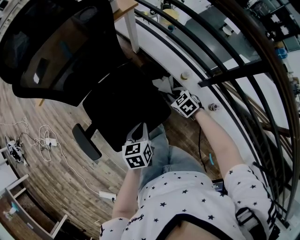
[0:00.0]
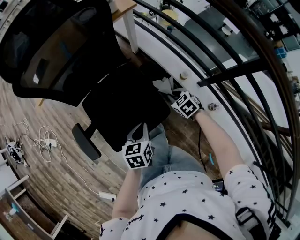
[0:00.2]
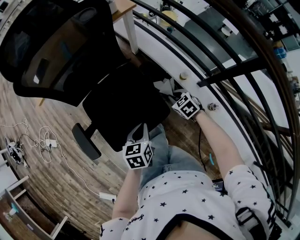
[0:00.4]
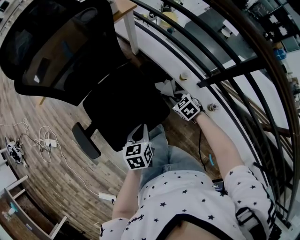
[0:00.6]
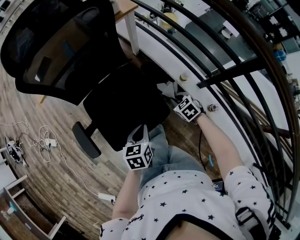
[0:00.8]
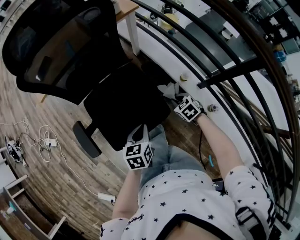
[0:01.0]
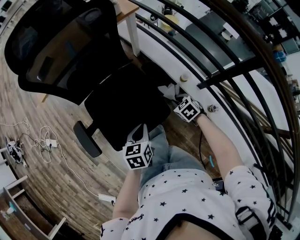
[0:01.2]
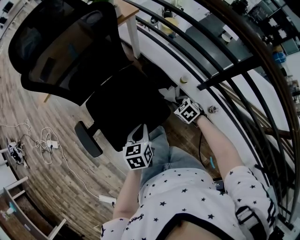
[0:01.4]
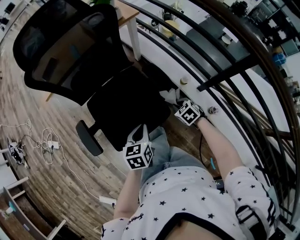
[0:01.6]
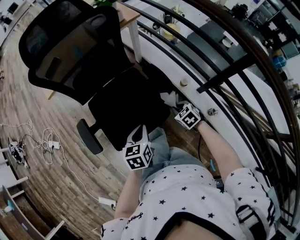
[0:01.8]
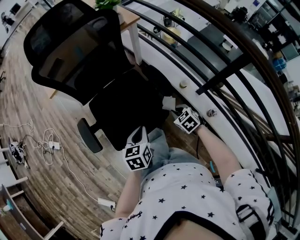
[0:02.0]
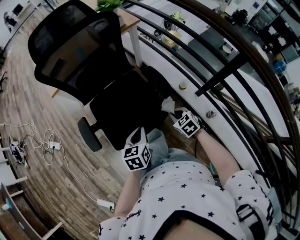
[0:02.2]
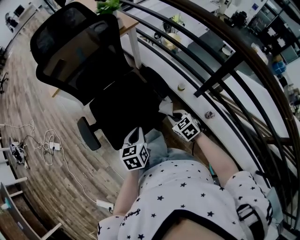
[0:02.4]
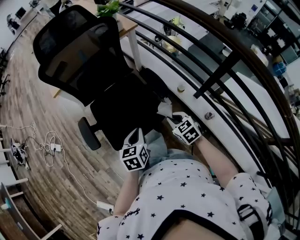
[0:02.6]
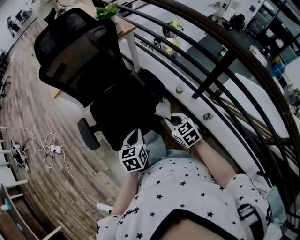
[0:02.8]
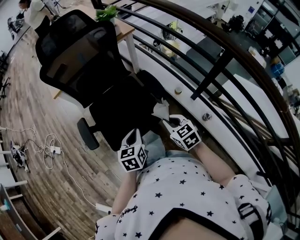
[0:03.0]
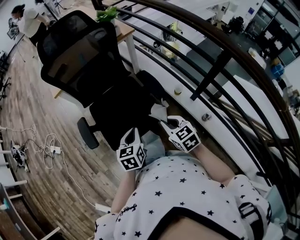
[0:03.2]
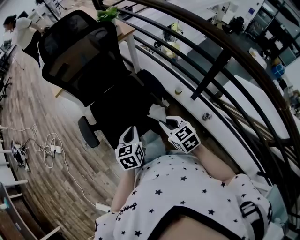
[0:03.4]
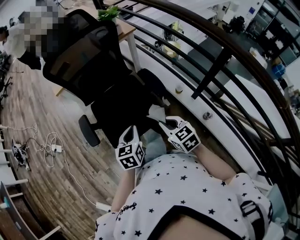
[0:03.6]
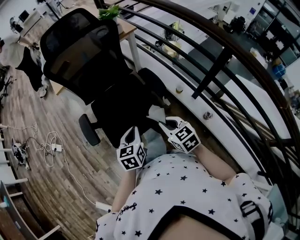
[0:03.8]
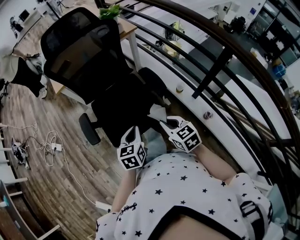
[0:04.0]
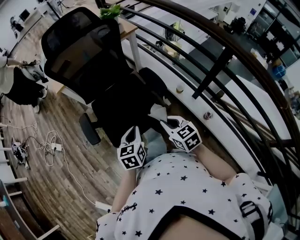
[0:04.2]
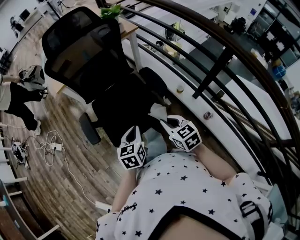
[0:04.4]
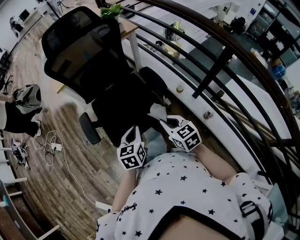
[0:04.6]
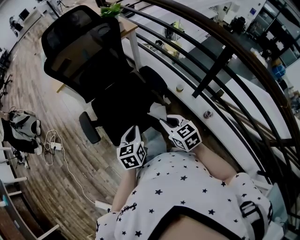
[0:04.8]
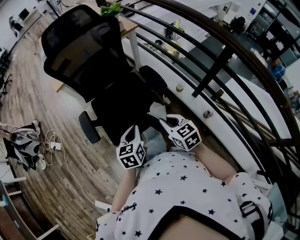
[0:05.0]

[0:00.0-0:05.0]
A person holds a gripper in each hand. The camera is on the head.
0:00.0 to 0:01.6: The right gripper is displaced backward by about 10 cm.
0:01.6 to 0:03.4: The right gripper shifts some 25 cm upward and backward, and changes its angle by roughly 30 degrees. The left gripper shifts some 10 cm backward and upward.
0:03.4 to 0:05.0: The grippers make only small movements.

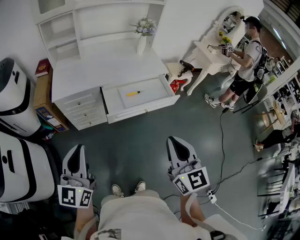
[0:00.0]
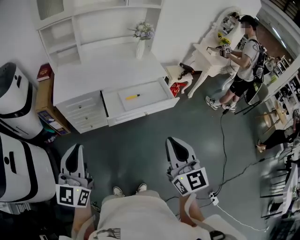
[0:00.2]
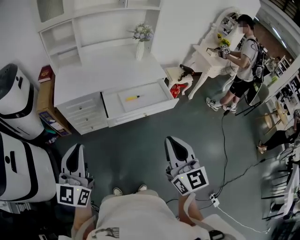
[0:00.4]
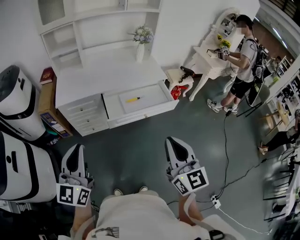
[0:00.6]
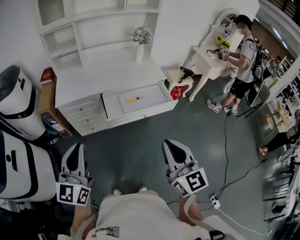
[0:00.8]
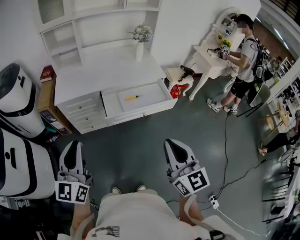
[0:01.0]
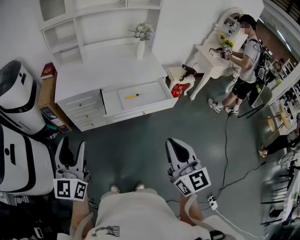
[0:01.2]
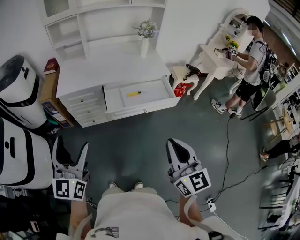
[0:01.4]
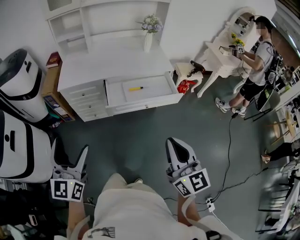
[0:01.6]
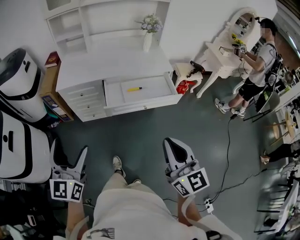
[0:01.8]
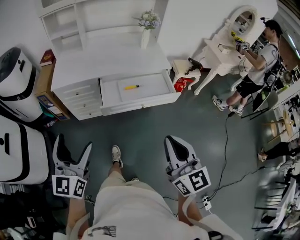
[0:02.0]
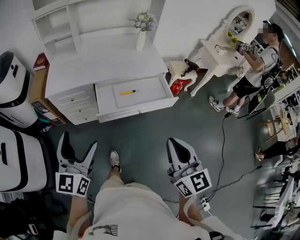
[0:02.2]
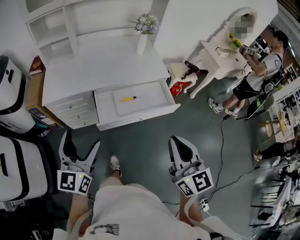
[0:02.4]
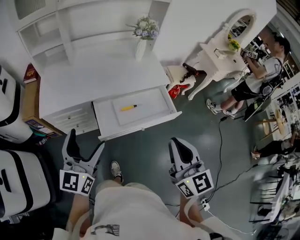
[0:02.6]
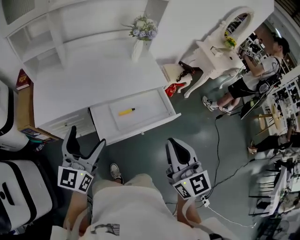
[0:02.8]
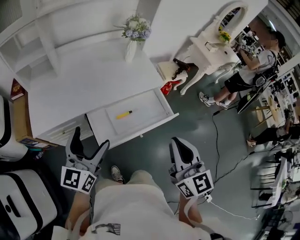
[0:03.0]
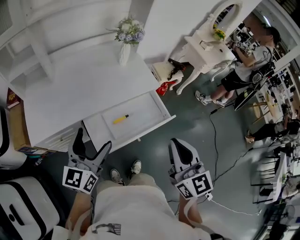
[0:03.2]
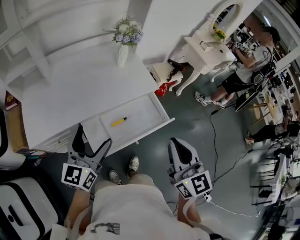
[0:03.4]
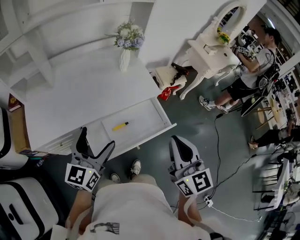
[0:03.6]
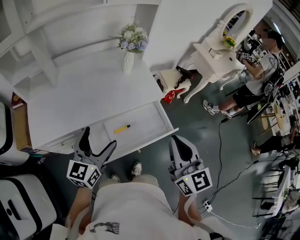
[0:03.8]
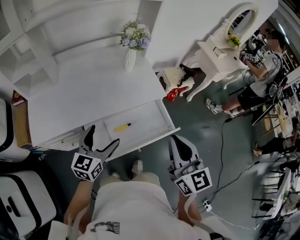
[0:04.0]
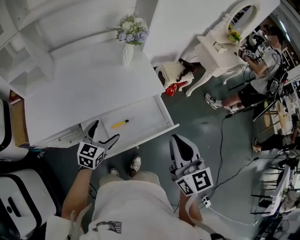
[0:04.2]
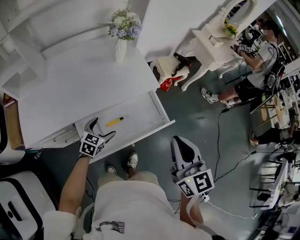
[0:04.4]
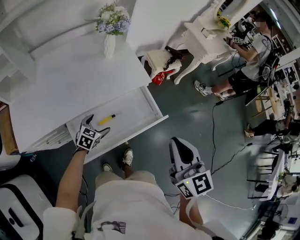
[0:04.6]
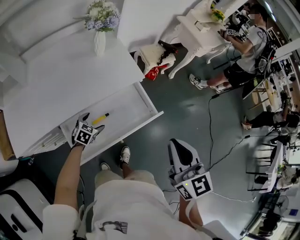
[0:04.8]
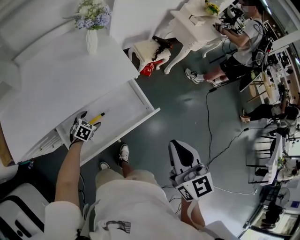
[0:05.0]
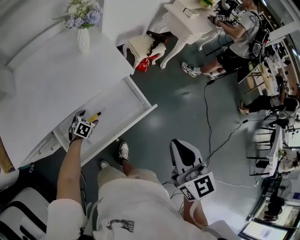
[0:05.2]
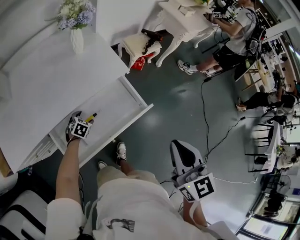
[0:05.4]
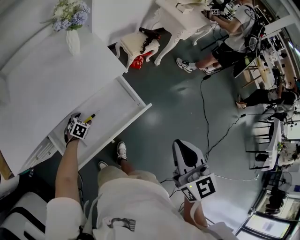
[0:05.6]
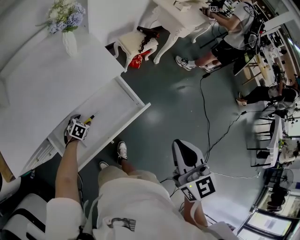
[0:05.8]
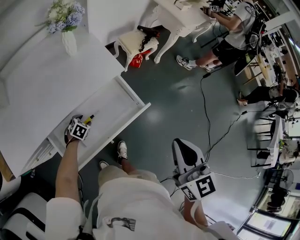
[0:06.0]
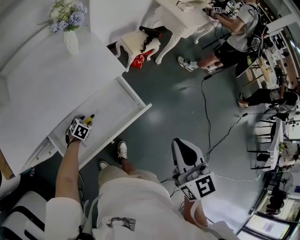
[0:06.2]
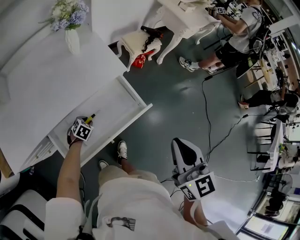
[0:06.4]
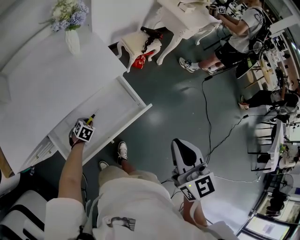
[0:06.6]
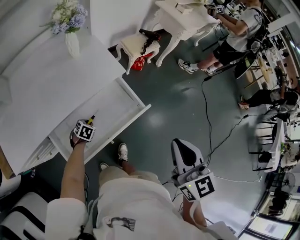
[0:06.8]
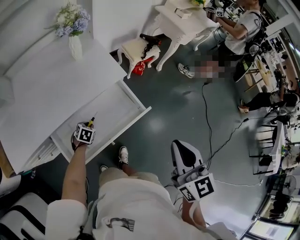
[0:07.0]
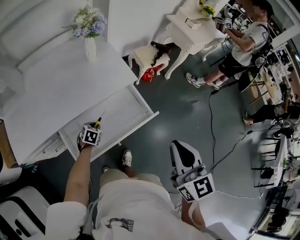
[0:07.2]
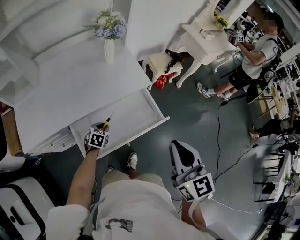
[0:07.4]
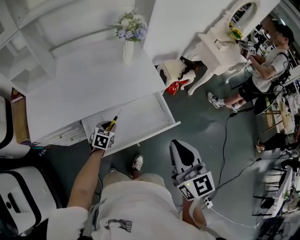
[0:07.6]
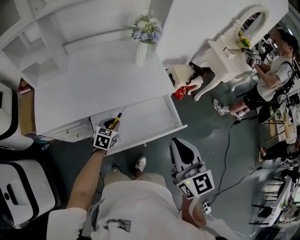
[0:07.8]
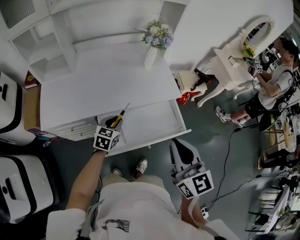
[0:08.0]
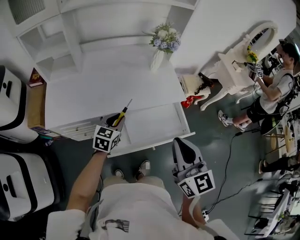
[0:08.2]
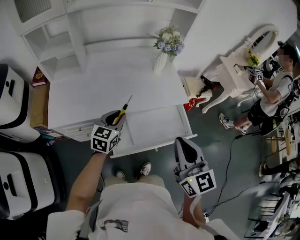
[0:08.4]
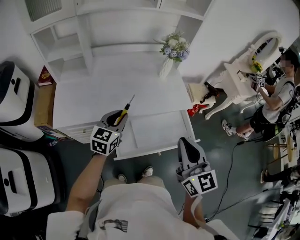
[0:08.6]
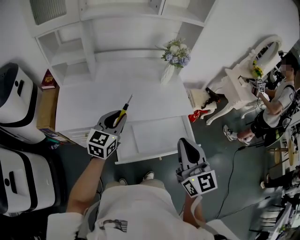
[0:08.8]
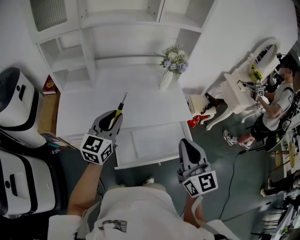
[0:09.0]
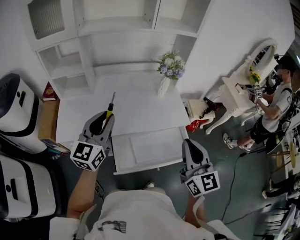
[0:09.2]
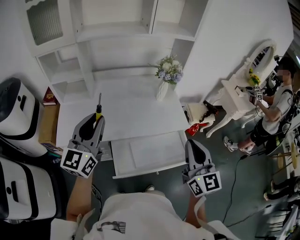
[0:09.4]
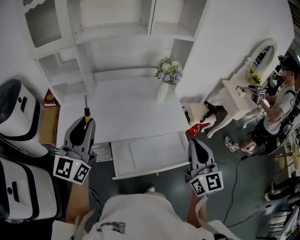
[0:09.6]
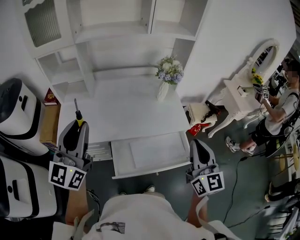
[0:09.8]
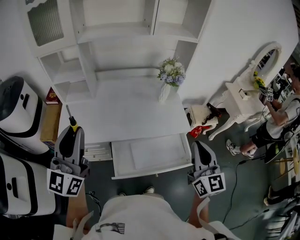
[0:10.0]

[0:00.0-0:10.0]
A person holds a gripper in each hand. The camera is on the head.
0:00.0 to 0:01.4: Both grippers travel together to the right, roughly 5 cm. The left gripper opens.
0:01.4 to 0:02.8: Both grippers travel together forward, roughly 30 cm. The left gripper rotates about 20 degrees.
0:02.8 to 0:04.2: The left gripper is displaced forward, downward and to the right by roughly 30 cm, and changes its angle by approximately 30 degrees; the right gripper travels forward and to the right by approximately 15 cm.
0:04.2 to 0:05.8: The right gripper shifts roughly 15 cm to the right, and turns by approximately 20 degrees. Meanwhile the left gripper shifts approximately 30 cm downward, tips its fingers downward by about 40 degrees, and closes its fingers.
0:05.8 to 0:07.2: The left gripper ends up roughly 5 cm from where it was, and closes.
0:07.2 to 0:08.6: The right gripper is displaced to the left by about 20 cm, and swivels some 20 degrees. Meanwhile the left gripper is displaced upward and to the left by roughly 35 cm, and points its fingers about 40 degrees further upward.
0:08.6 to 0:10.0: The right gripper goes some 10 cm to the right and forward. Meanwhile the left gripper is displaced upward by about 25 cm, and points its fingers some 30 degrees further upward.

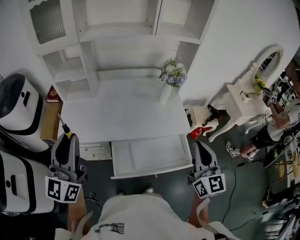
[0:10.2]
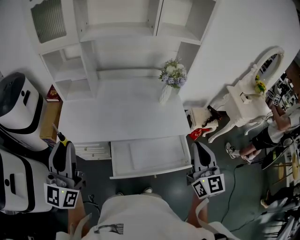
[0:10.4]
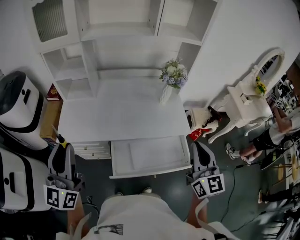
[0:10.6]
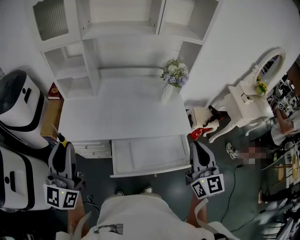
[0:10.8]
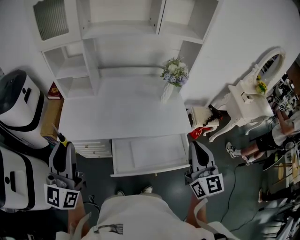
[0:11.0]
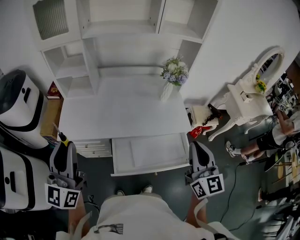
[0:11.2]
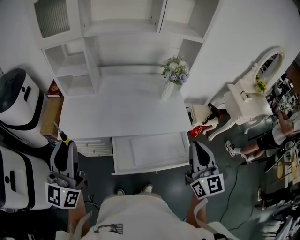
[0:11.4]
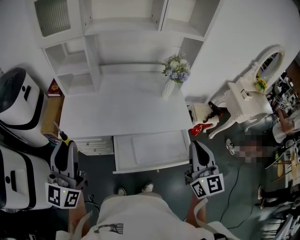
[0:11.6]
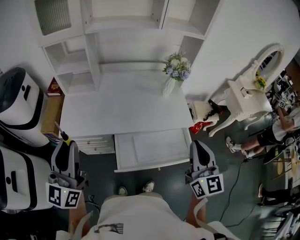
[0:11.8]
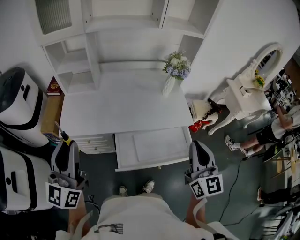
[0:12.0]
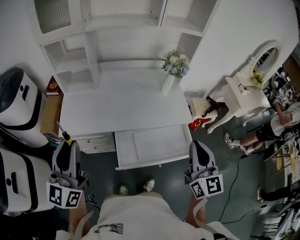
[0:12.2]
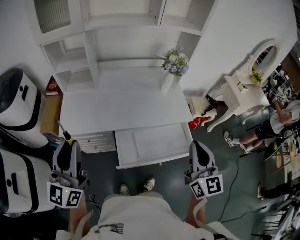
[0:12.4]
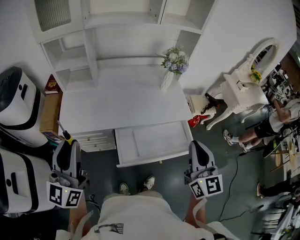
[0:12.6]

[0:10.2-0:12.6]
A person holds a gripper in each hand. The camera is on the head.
0:10.2 to 0:11.4: The left gripper shifts some 5 cm backward; the right gripper moves approximately 5 cm.
0:11.4 to 0:12.6: The right gripper heads backward, covering some 5 cm.

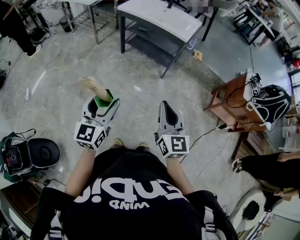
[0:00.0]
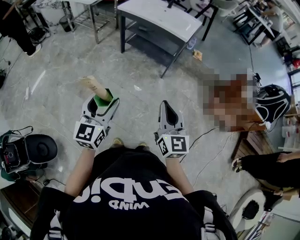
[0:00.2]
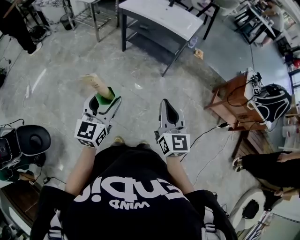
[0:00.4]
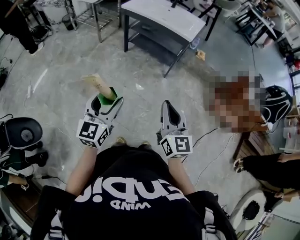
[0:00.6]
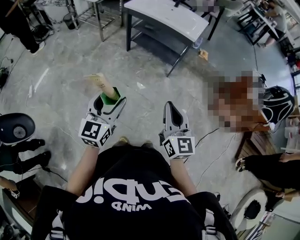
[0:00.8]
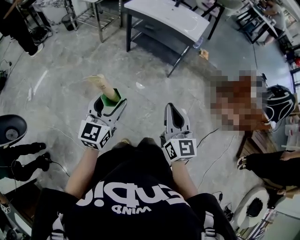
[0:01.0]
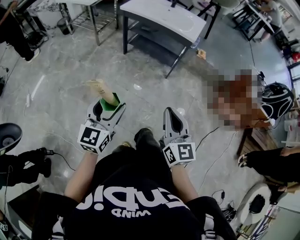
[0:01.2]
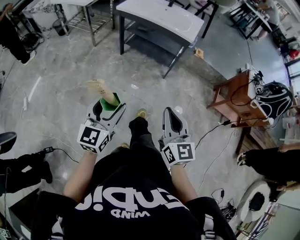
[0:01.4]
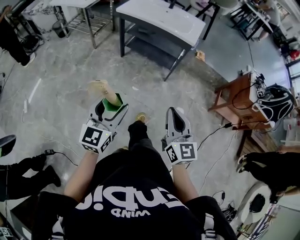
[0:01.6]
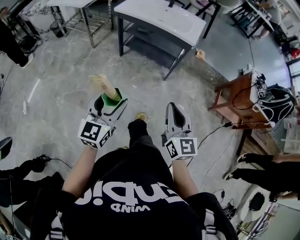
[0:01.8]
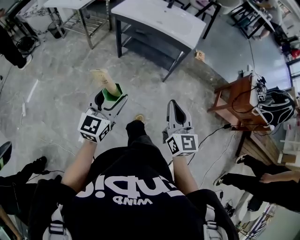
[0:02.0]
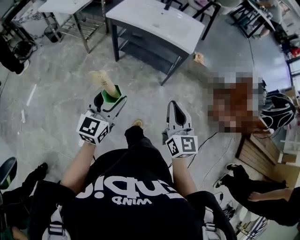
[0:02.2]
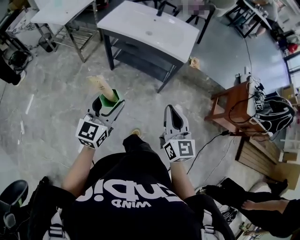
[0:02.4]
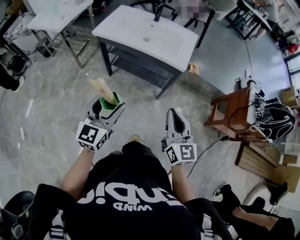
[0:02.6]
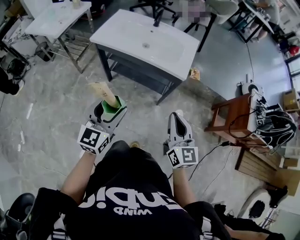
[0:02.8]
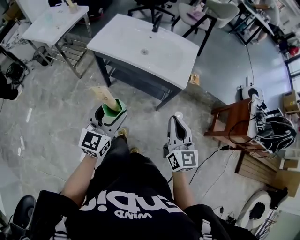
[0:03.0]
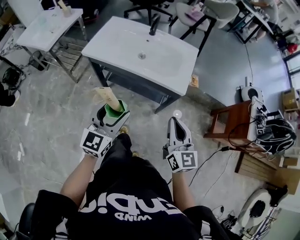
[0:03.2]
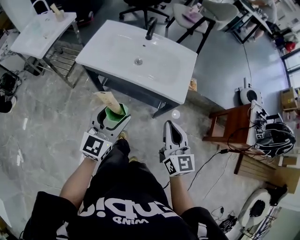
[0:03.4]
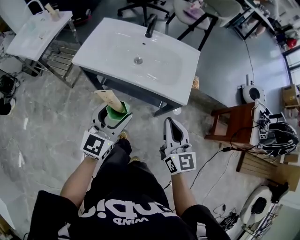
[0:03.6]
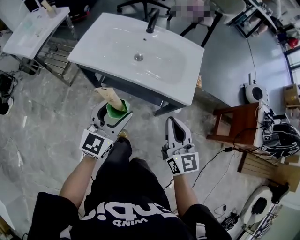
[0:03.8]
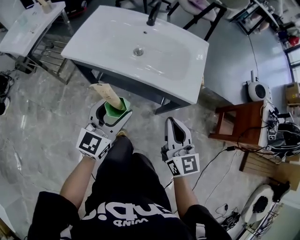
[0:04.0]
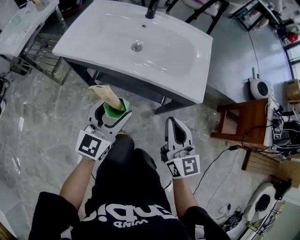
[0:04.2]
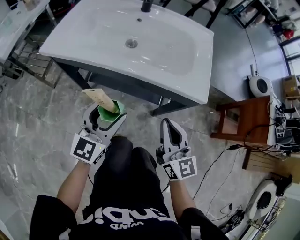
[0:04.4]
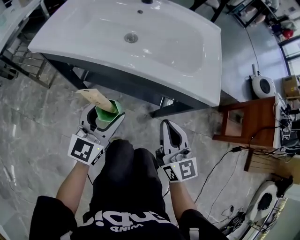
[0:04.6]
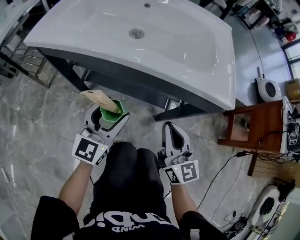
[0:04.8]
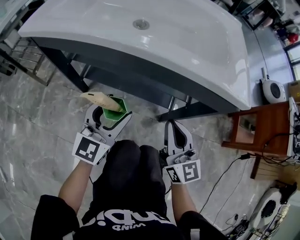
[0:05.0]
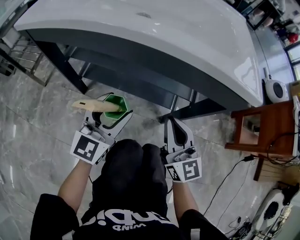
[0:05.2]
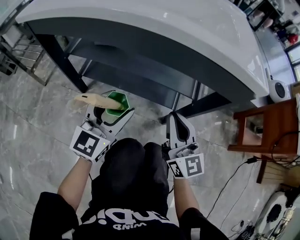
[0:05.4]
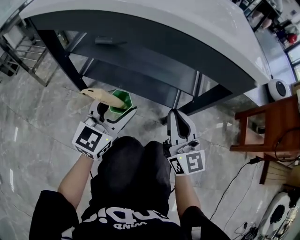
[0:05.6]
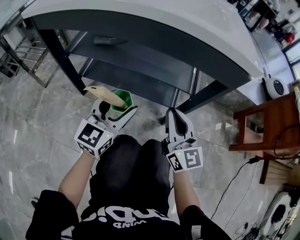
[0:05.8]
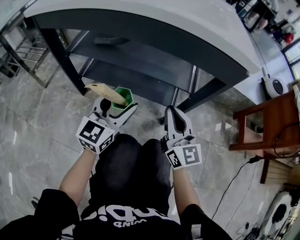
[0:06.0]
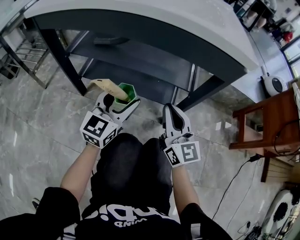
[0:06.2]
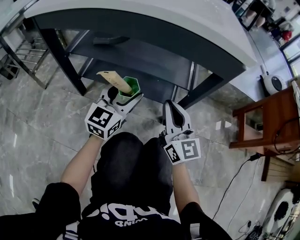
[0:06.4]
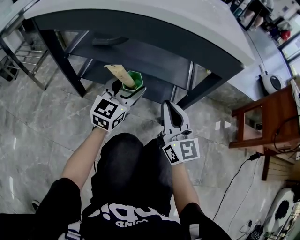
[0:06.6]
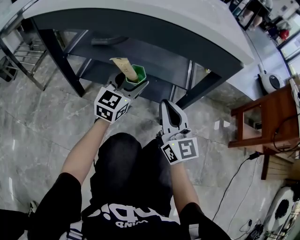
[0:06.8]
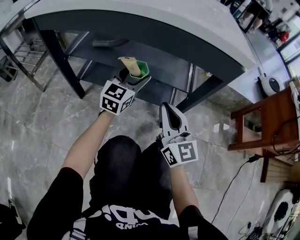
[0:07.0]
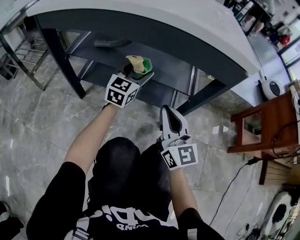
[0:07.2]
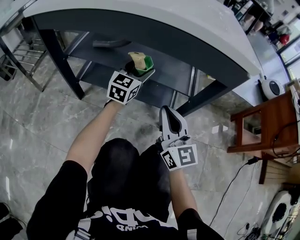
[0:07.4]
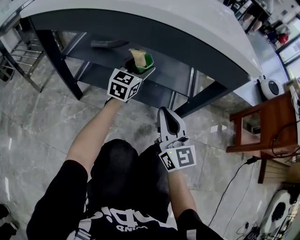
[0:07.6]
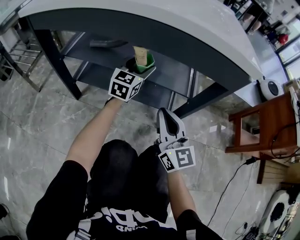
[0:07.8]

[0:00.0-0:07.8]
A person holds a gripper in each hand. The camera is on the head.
0:00.0 to 0:01.6: The right gripper heads to the left, covering some 5 cm. The left gripper travels forward by roughly 5 cm.
0:01.6 to 0:03.2: The pair of grippers is taken forward, approximately 40 cm.
0:03.2 to 0:04.6: Both grippers move downward and forward, about 30 cm.
0:04.6 to 0:06.2: Both grippers travel together downward, some 15 cm.
0:06.2 to 0:07.8: The left gripper shifts roughly 20 cm forward.
